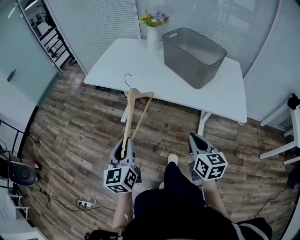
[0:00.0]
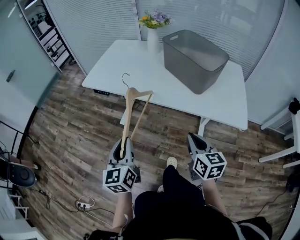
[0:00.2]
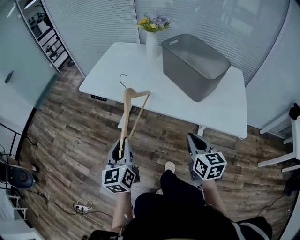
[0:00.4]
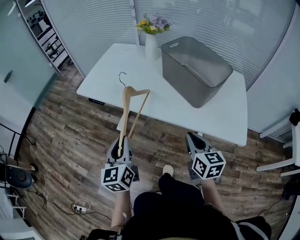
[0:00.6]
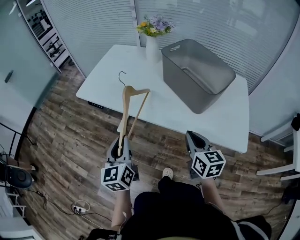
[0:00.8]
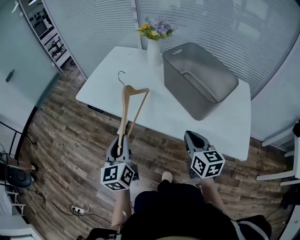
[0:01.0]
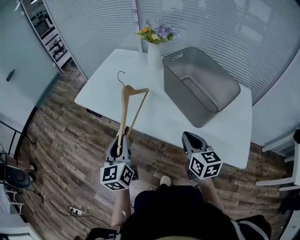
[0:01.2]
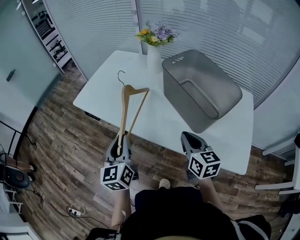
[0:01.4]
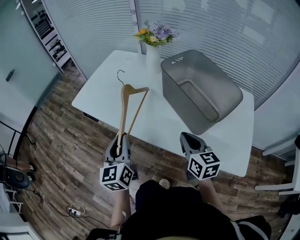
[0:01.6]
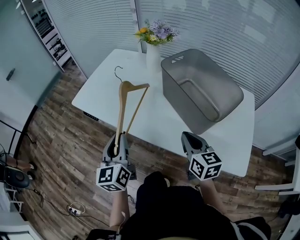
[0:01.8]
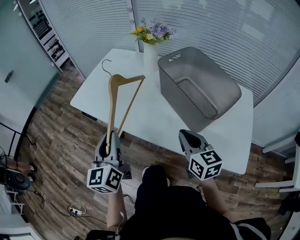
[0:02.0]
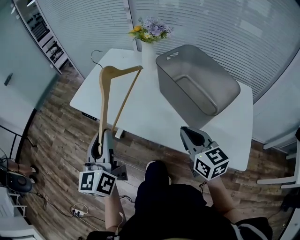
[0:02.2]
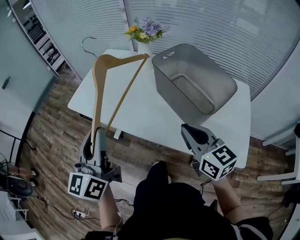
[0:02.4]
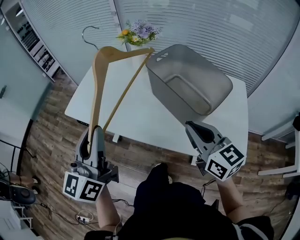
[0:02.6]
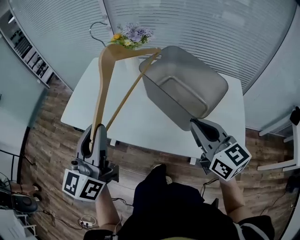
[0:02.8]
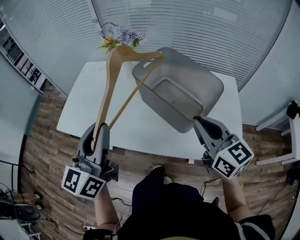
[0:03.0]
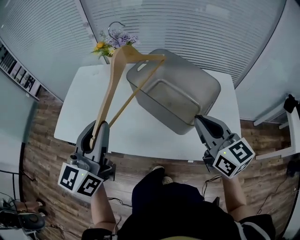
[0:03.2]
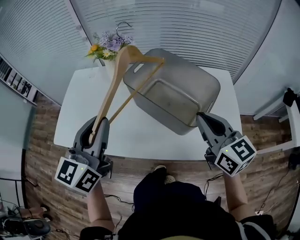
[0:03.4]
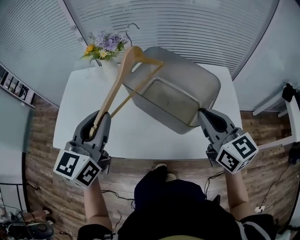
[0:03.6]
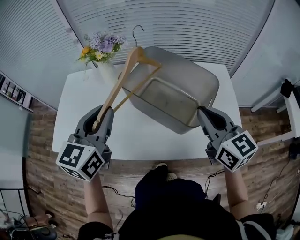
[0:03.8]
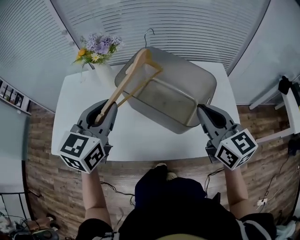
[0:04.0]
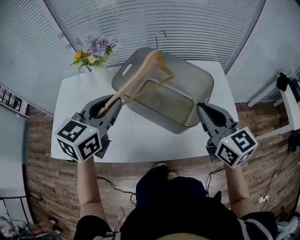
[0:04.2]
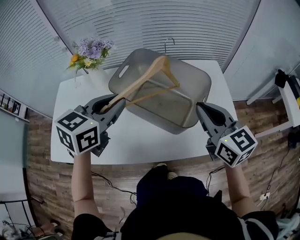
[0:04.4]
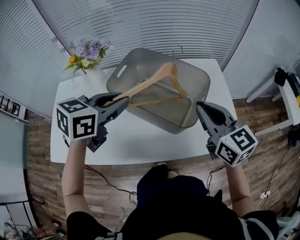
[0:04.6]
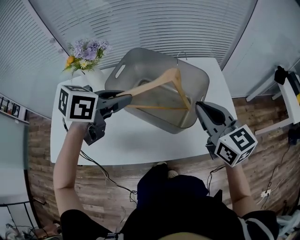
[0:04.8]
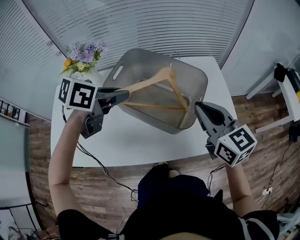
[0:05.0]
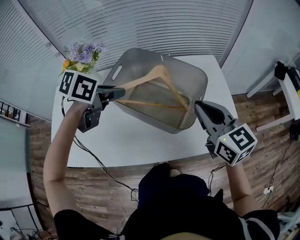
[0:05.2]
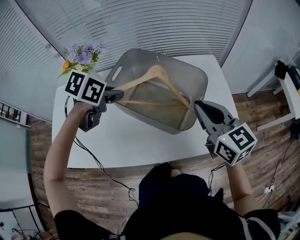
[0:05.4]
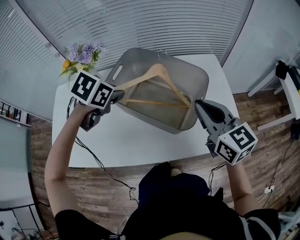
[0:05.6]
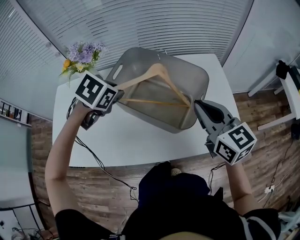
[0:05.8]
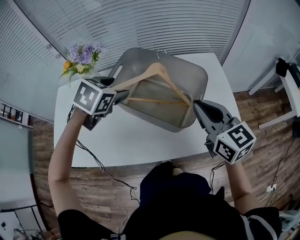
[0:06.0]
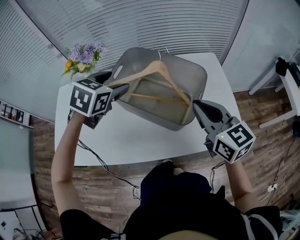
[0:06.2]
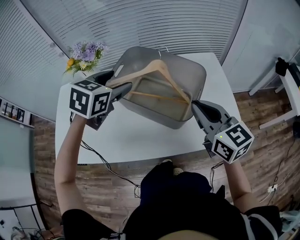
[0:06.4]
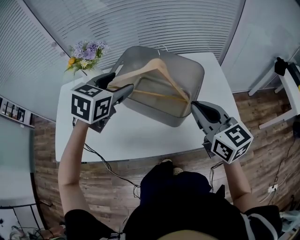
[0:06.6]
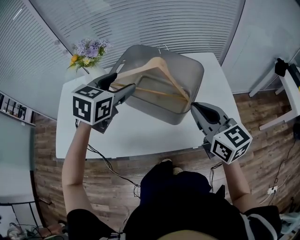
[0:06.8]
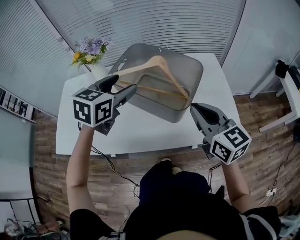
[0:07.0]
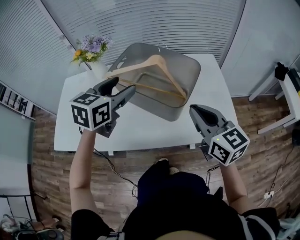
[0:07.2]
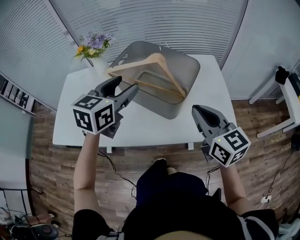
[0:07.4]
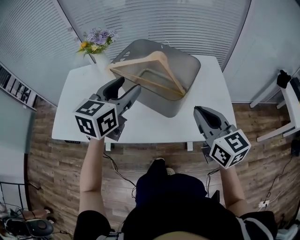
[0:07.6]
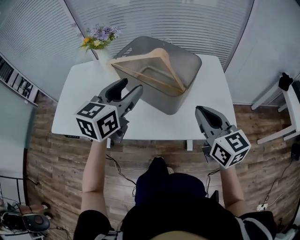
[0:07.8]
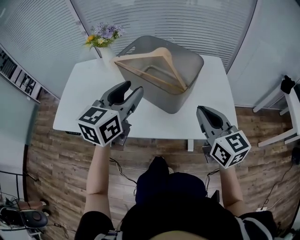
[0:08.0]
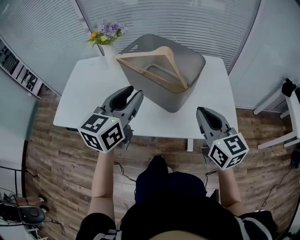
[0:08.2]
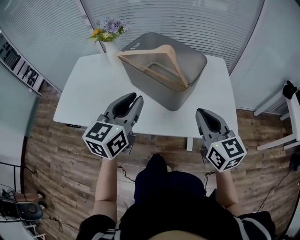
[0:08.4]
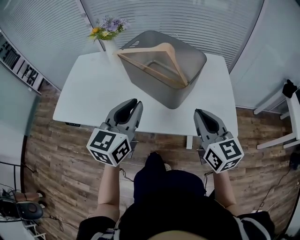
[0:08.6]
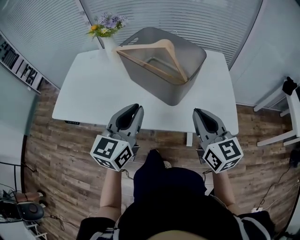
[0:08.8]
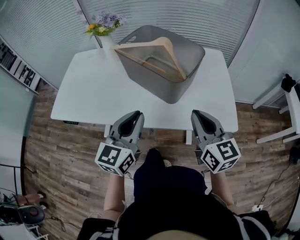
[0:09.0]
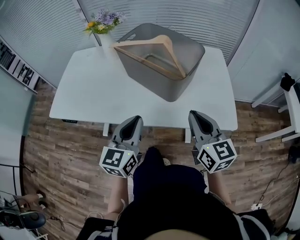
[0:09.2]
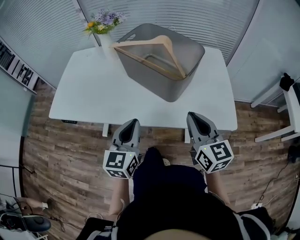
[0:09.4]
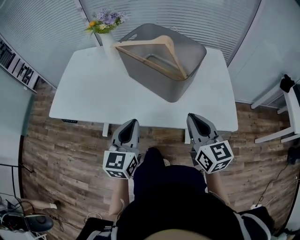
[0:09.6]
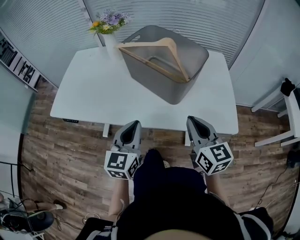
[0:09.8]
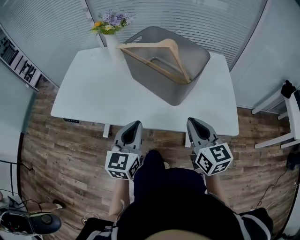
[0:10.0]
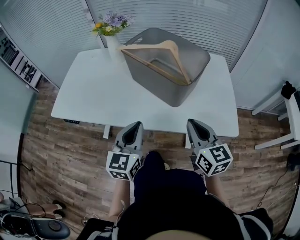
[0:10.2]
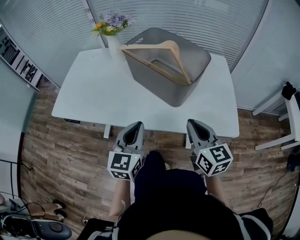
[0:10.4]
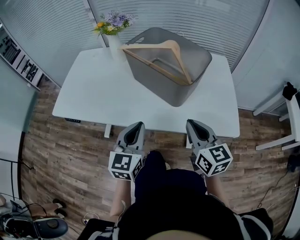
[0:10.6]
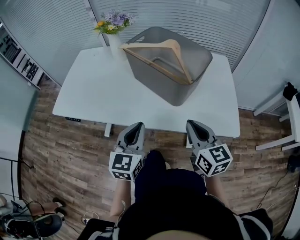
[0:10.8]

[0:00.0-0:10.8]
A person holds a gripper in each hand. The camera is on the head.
0:00.0 to 0:01.6: The grippers both shift forward by about 25 cm.
0:01.6 to 0:03.0: The right gripper heads upward and to the right, covering roughly 15 cm. Meanwhile the left gripper heads upward, covering some 15 cm, and turns by approximately 30 degrees.
0:03.0 to 0:04.6: The right gripper ends up some 10 cm from where it was. Meanwhile the left gripper shifts by some 25 cm, and tips its fingers downward by some 40 degrees.
0:04.6 to 0:06.2: The left gripper shifts approximately 10 cm forward, swivels about 30 degrees, and opens.
0:06.2 to 0:07.8: The left gripper goes about 20 cm backward, and tips its fingers upward by approximately 30 degrees, while the right gripper goes about 10 cm backward.
0:07.8 to 0:09.2: The right gripper moves some 5 cm, while the left gripper shifts about 15 cm backward and downward, and closes its fingers.
0:09.2 to 0:10.8: The grippers stay close to where they were, moving slightly.

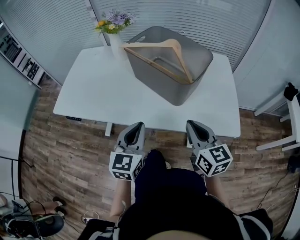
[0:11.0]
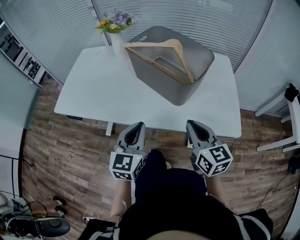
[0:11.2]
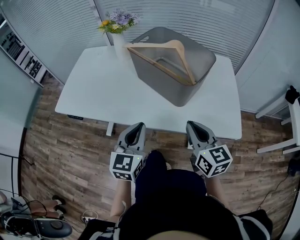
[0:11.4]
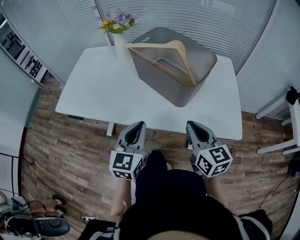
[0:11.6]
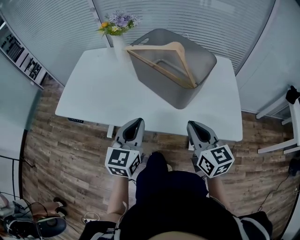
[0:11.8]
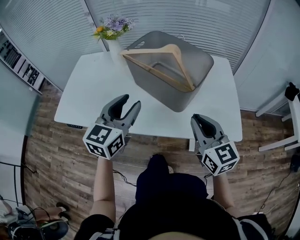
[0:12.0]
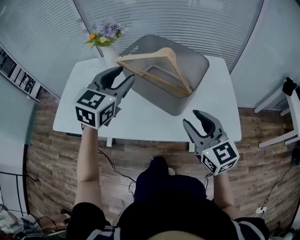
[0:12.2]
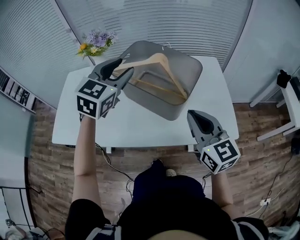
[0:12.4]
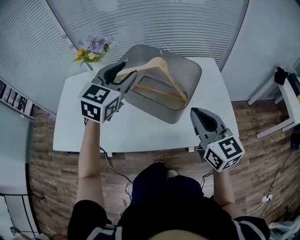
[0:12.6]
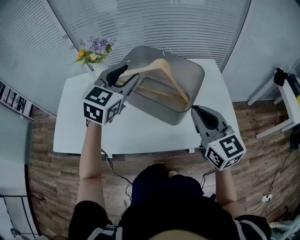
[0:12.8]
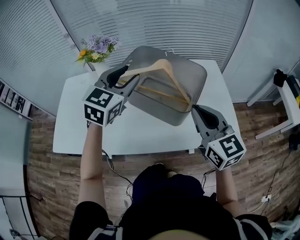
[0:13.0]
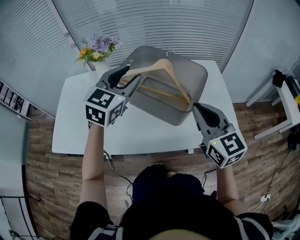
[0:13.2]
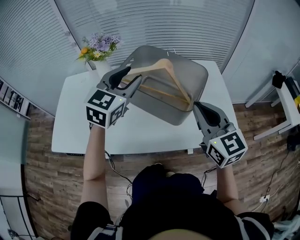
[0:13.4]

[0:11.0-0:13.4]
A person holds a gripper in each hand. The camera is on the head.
0:11.0 to 0:12.2: The right gripper travels upward by approximately 5 cm, and opens up. The left gripper moves forward and upward, some 25 cm, rotates some 20 degrees, and opens up.
0:12.2 to 0:13.4: The right gripper moves upward and forward, about 10 cm, and closes its fingers. Meanwhile the left gripper is displaced forward by roughly 5 cm.

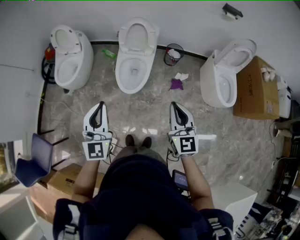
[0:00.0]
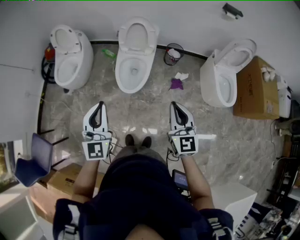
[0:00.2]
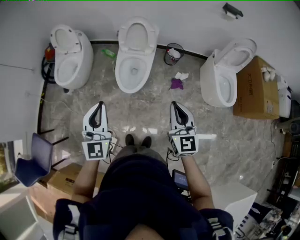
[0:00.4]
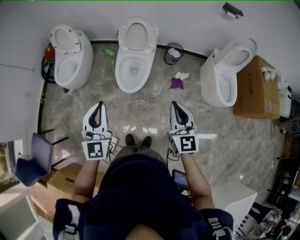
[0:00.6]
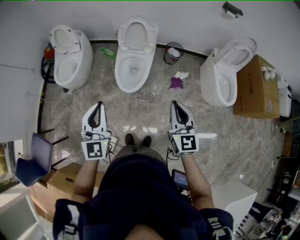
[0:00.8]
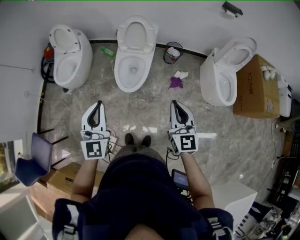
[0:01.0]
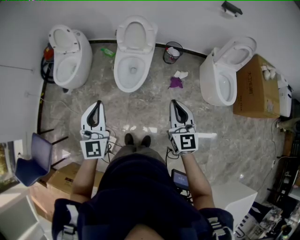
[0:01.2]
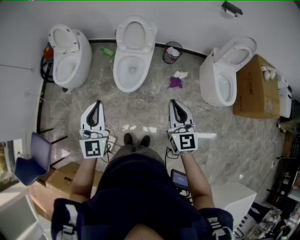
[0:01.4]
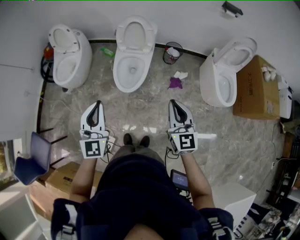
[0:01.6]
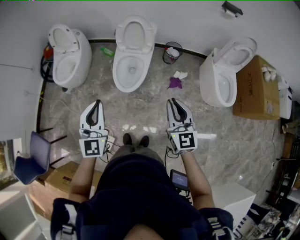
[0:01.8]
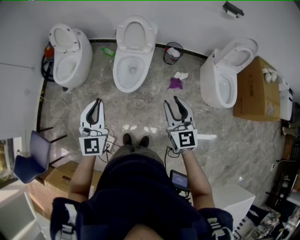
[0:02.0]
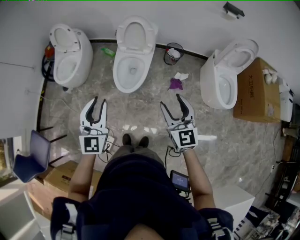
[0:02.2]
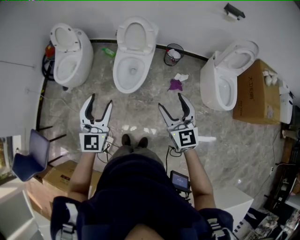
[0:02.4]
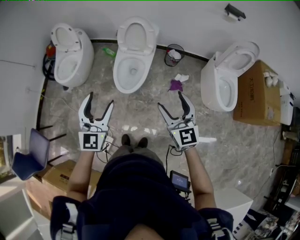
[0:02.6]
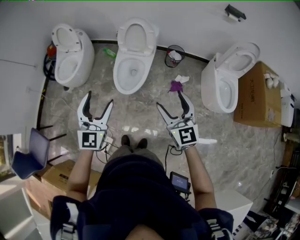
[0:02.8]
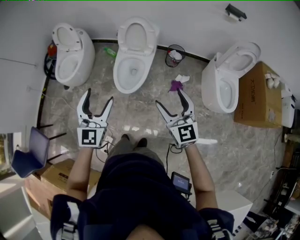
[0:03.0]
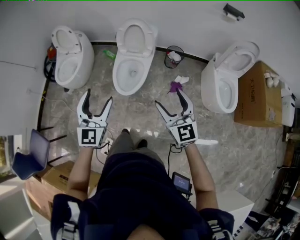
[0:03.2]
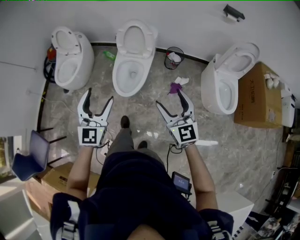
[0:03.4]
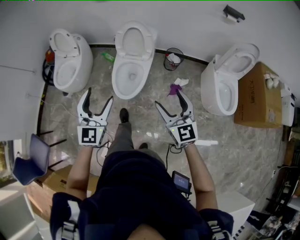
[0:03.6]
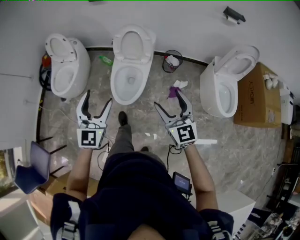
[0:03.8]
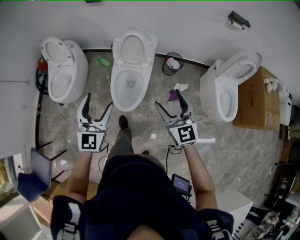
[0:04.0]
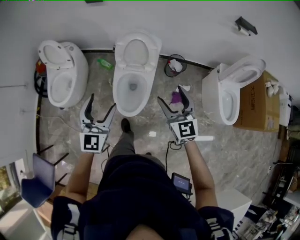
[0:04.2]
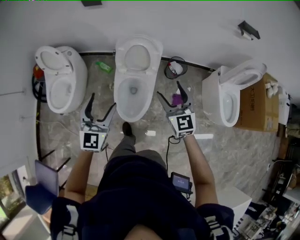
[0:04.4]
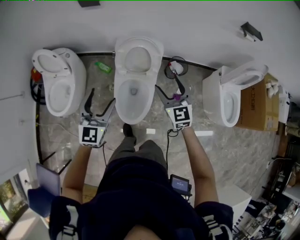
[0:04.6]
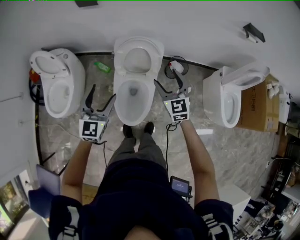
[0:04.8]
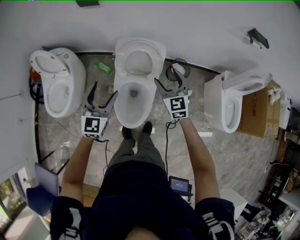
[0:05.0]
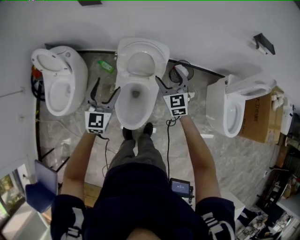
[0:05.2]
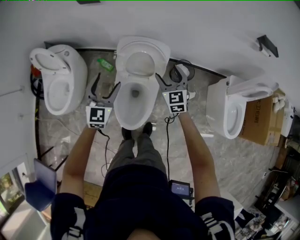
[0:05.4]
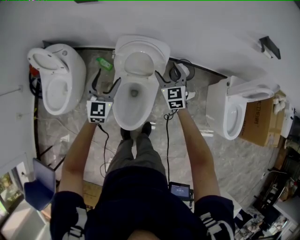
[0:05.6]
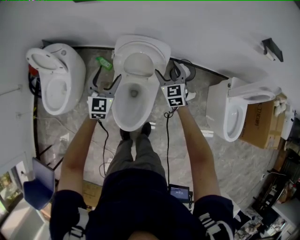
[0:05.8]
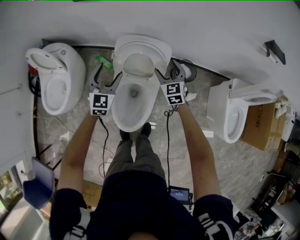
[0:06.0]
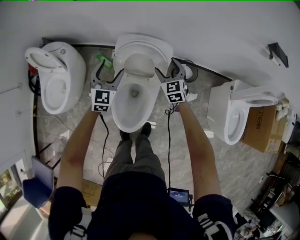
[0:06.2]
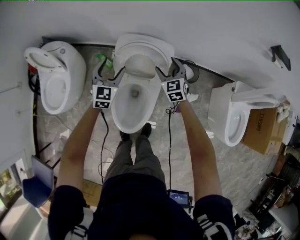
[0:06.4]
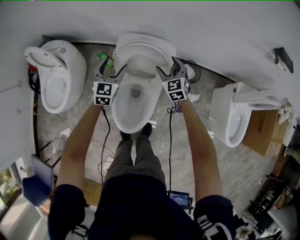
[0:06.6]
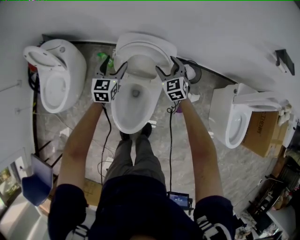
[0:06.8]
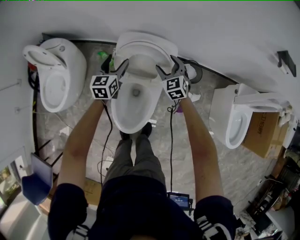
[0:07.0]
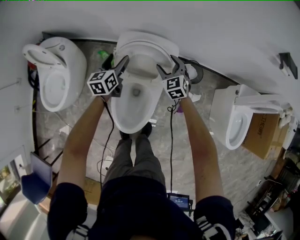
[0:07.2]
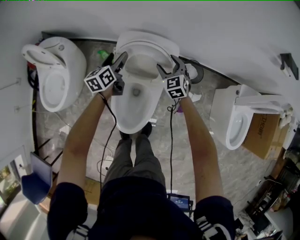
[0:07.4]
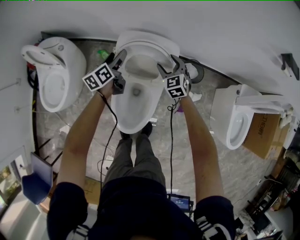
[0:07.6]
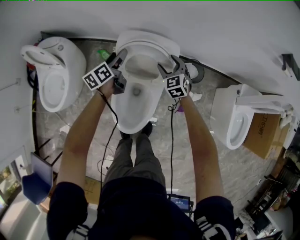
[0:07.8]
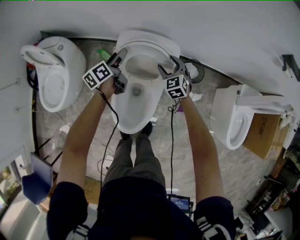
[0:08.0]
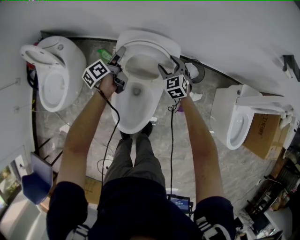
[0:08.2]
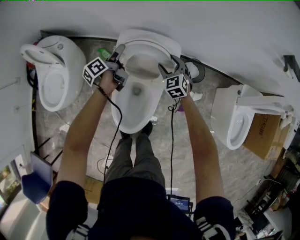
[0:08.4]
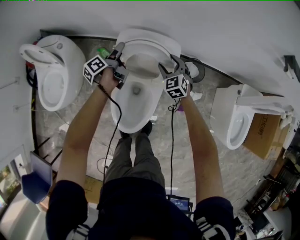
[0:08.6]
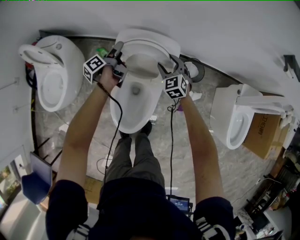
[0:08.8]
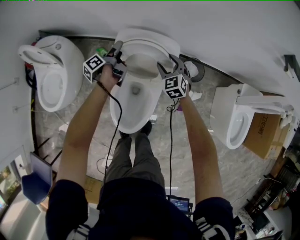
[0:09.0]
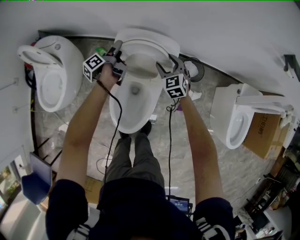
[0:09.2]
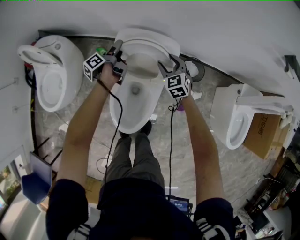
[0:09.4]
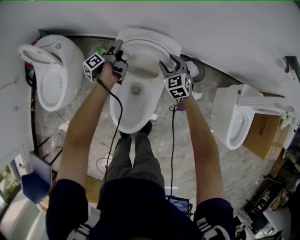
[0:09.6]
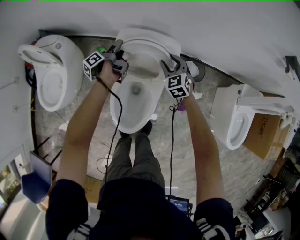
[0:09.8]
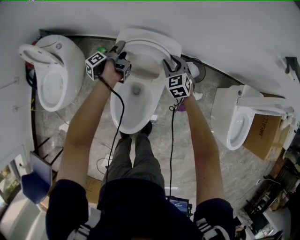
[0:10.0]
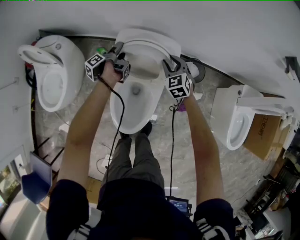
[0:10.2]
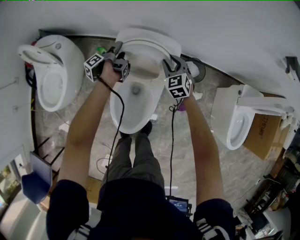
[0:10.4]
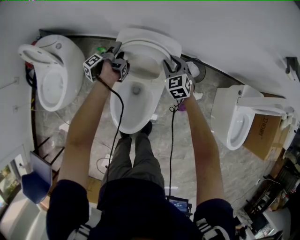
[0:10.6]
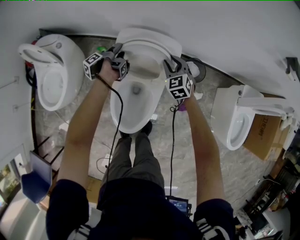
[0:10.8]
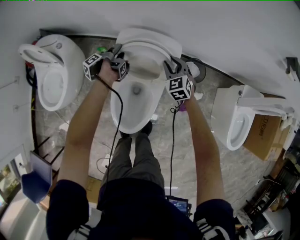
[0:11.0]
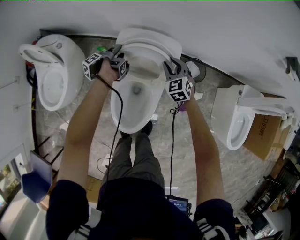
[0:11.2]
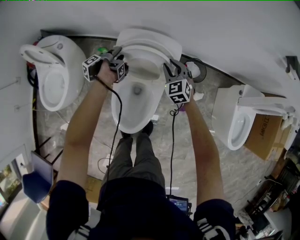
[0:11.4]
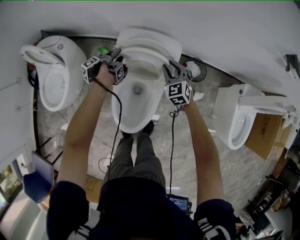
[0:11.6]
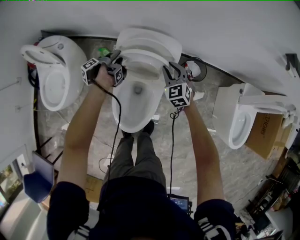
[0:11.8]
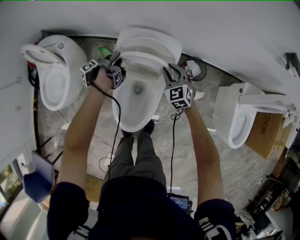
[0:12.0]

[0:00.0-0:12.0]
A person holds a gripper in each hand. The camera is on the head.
0:01.6 to 0:03.0: The right gripper opens.
0:03.0 to 0:04.4: The right gripper changes place by about 40 cm.
0:04.4 to 0:06.0: The right gripper changes place by about 35 cm.
0:06.0 to 0:07.6: The right gripper goes some 10 cm downward.
0:09.0 to 0:10.4: The right gripper closes up.
0:10.4 to 0:12.0: The right gripper ends up approximately 5 cm from where it was.
